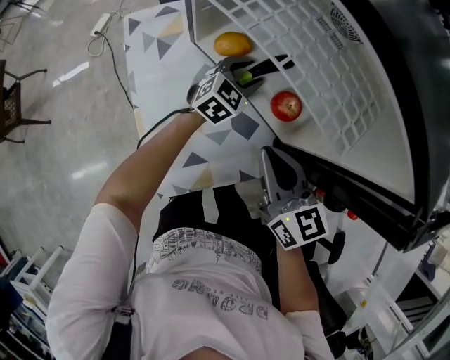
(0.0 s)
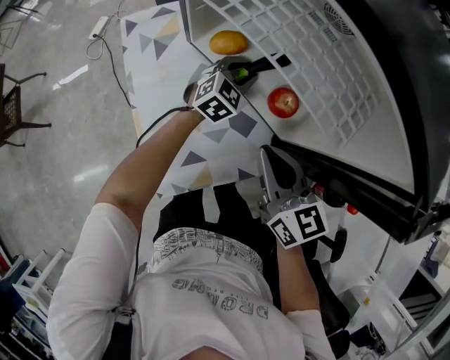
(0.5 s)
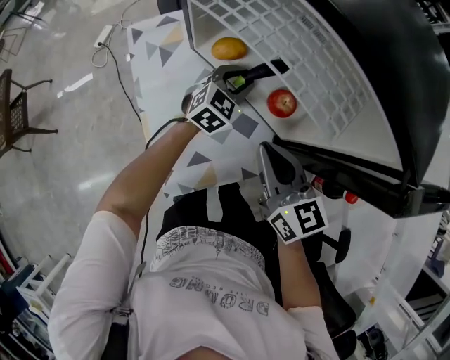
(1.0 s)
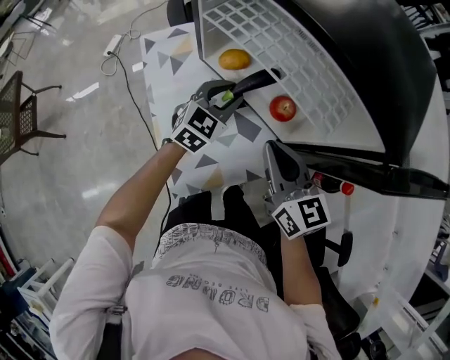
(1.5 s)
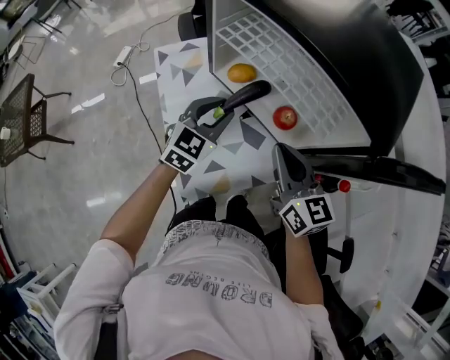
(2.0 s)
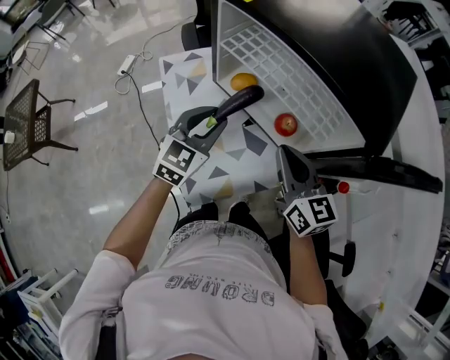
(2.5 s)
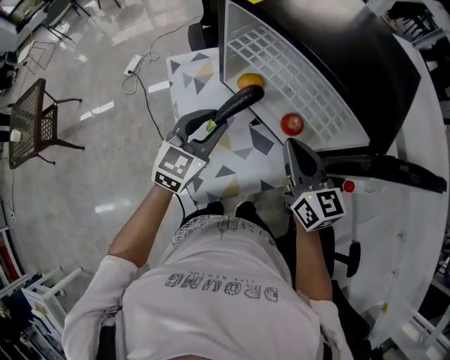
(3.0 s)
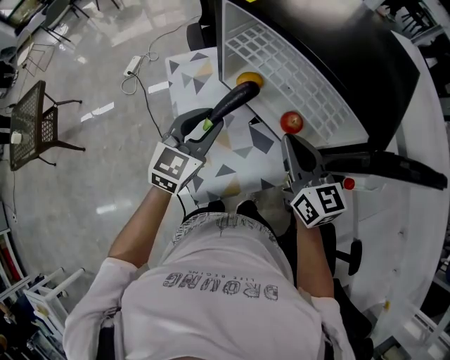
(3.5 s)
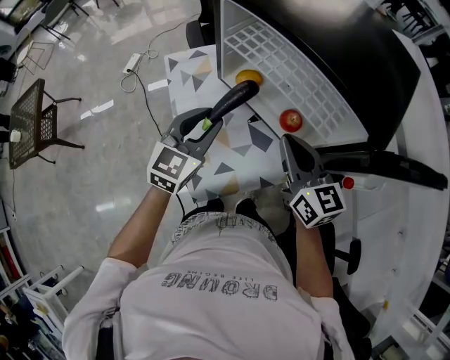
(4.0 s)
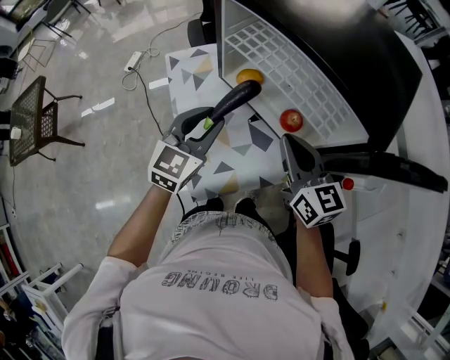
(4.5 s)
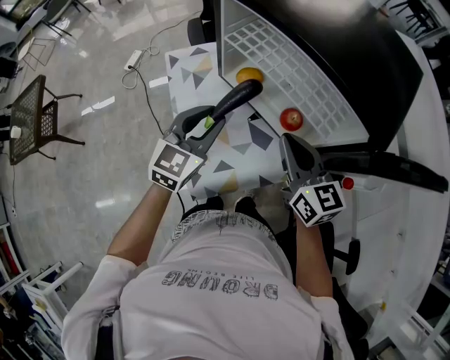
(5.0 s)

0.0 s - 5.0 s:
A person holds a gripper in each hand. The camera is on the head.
0.0 s - 2.5 s: The right gripper travels upward by approximately 10 cm. Meanwhile the left gripper moves upward, backward and to the left, roughly 25 cm.
2.5 s - 5.0 s: The grippers move only a little.

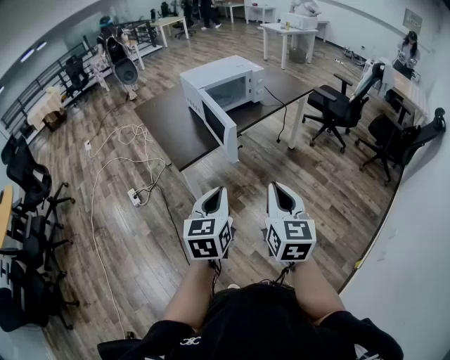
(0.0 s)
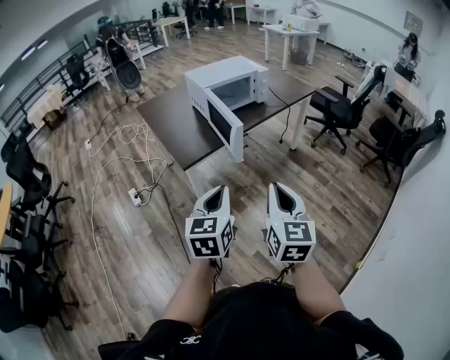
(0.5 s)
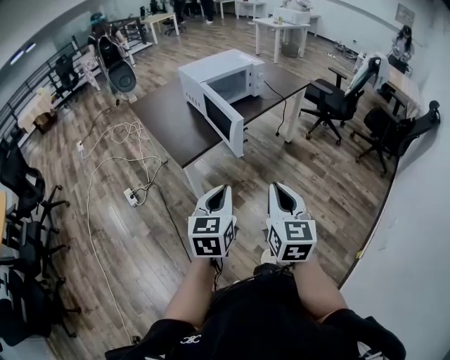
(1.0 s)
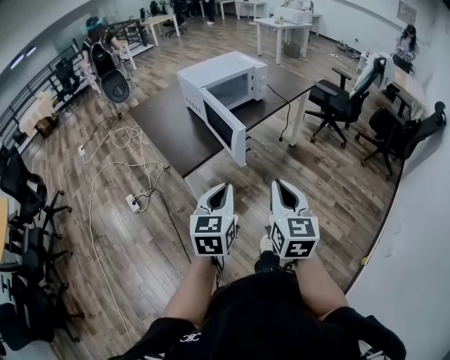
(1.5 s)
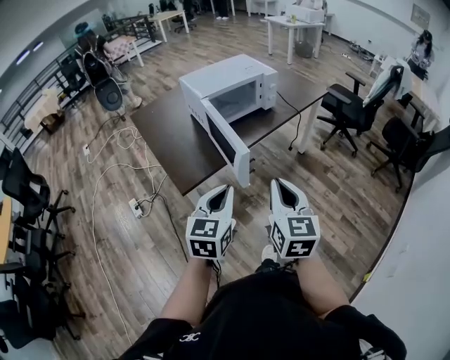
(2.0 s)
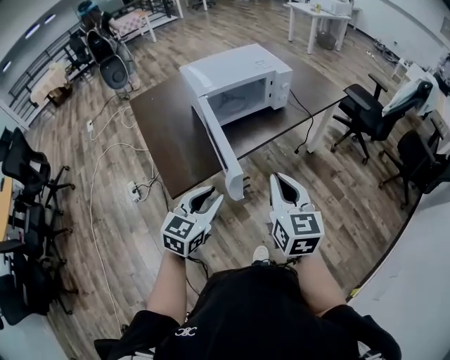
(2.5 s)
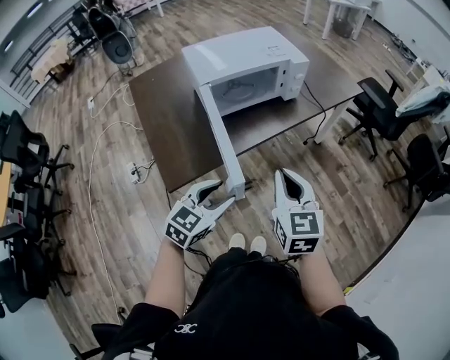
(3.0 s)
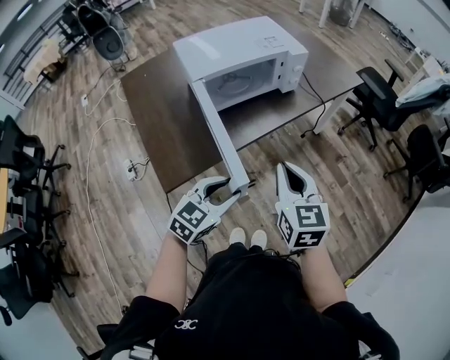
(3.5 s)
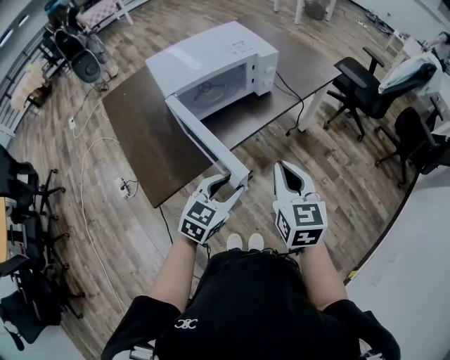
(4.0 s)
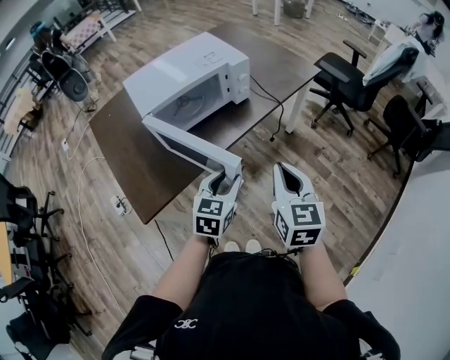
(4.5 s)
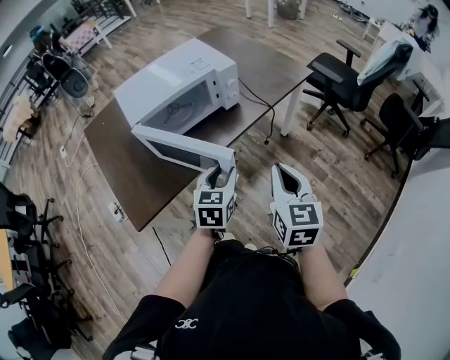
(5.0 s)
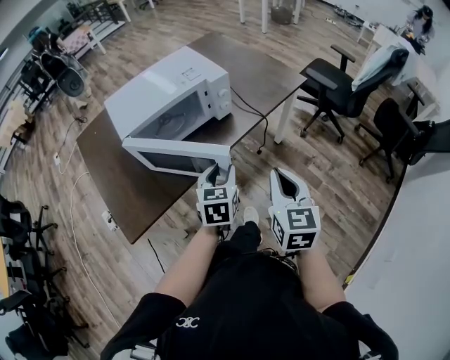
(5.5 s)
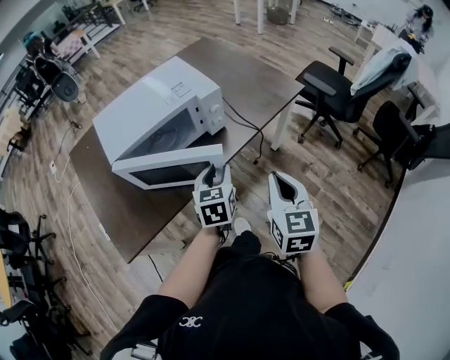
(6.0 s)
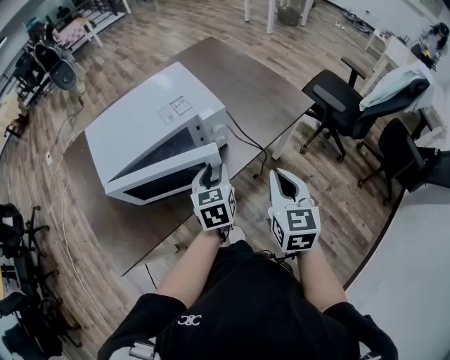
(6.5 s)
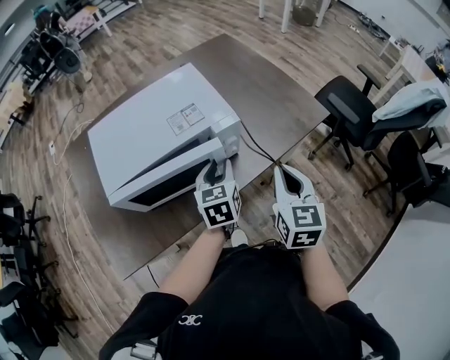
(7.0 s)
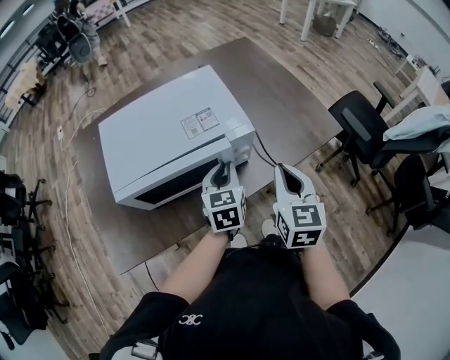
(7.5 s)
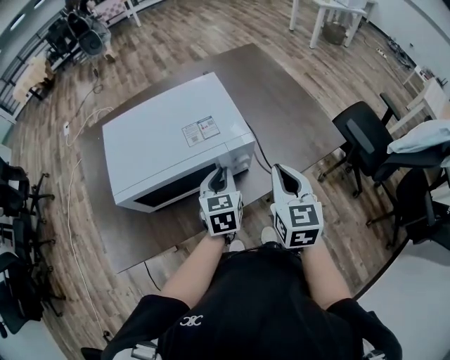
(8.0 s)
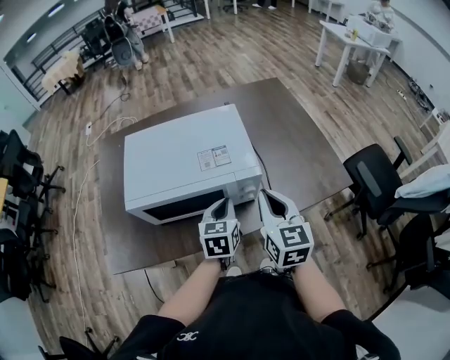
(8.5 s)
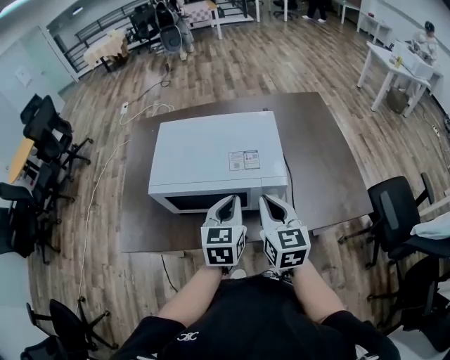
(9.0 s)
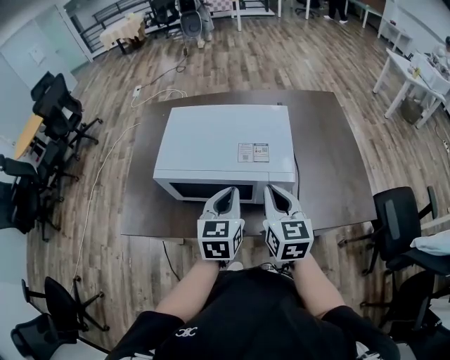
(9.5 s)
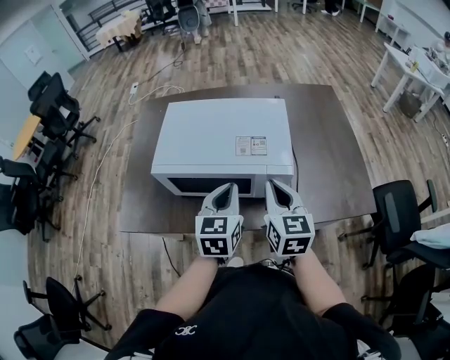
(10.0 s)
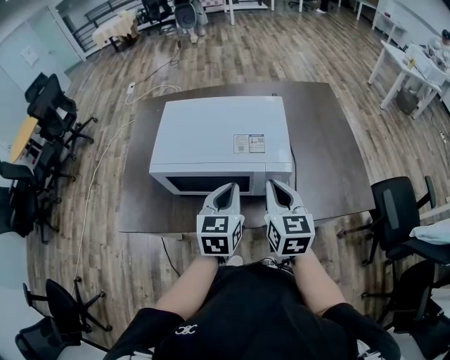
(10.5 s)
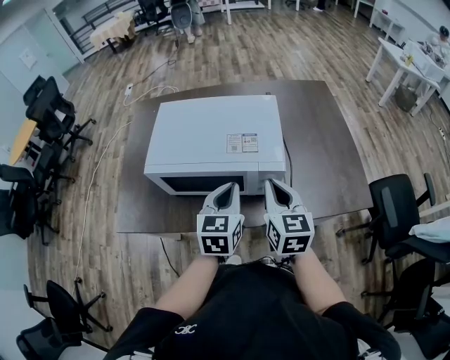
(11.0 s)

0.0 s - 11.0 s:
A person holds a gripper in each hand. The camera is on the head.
0.0 s - 2.0 s: The two grippers go roughly 20 cm forward.
2.0 s - 3.5 s: The right gripper moves forward, about 25 cm, while the left gripper moves forward and downward, some 20 cm, rotates roughly 30 degrees, and opens.
3.5 s - 5.5 s: The left gripper heads forward and to the right, covering approximately 25 cm, and swivels roughly 30 degrees. Meanwhile the right gripper goes roughly 20 cm to the right and forward.
5.5 s - 7.5 s: Both grippers move forward, roughly 30 cm. The left gripper closes its fingers.
7.5 s - 9.0 s: The left gripper moves upward, about 5 cm. Meanwhile the right gripper heads to the left and forward, covering approximately 10 cm, and swivels roughly 30 degrees.
9.0 s - 11.0 s: The grippers make only small movements.

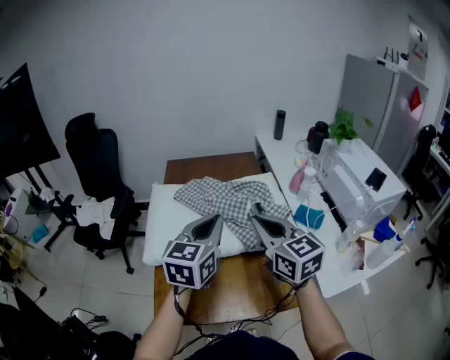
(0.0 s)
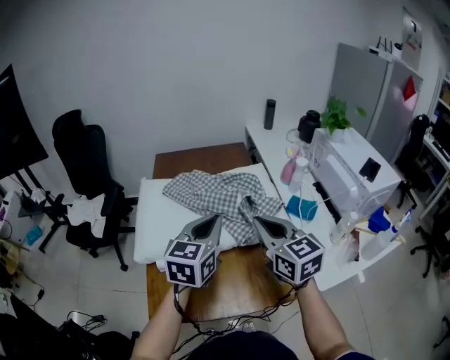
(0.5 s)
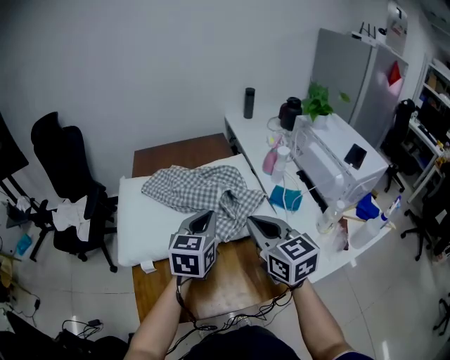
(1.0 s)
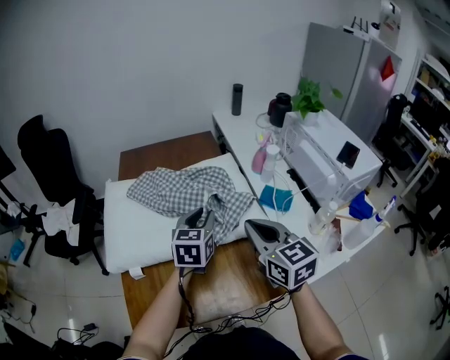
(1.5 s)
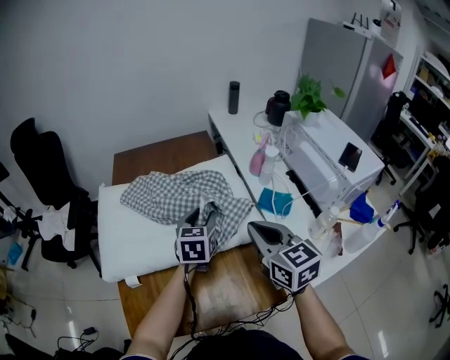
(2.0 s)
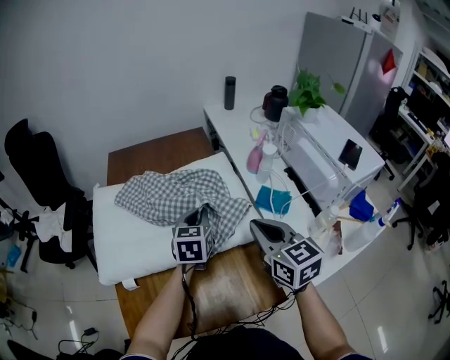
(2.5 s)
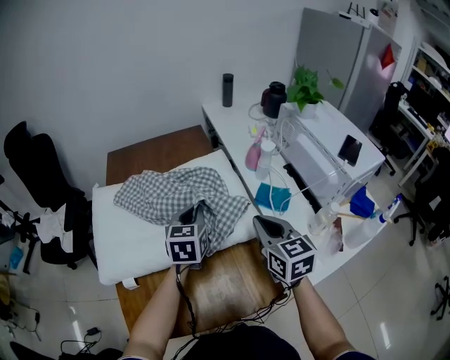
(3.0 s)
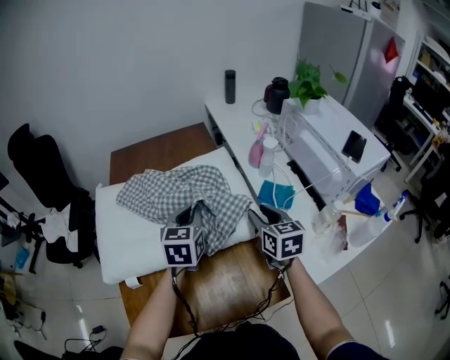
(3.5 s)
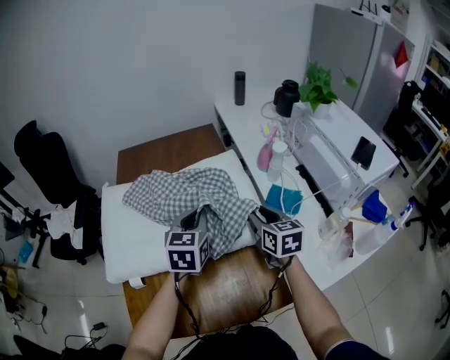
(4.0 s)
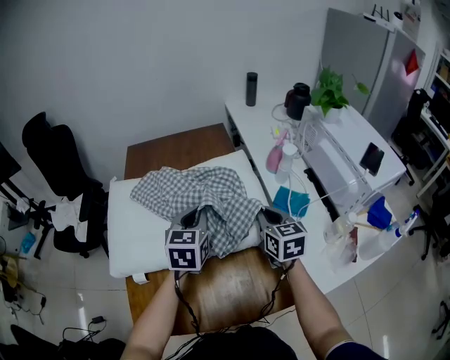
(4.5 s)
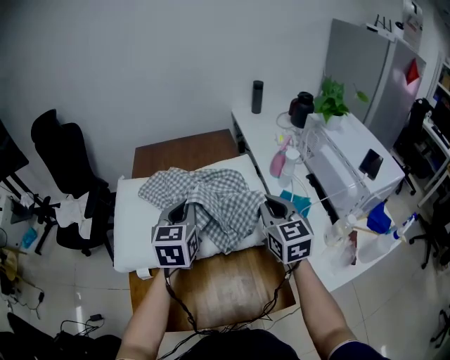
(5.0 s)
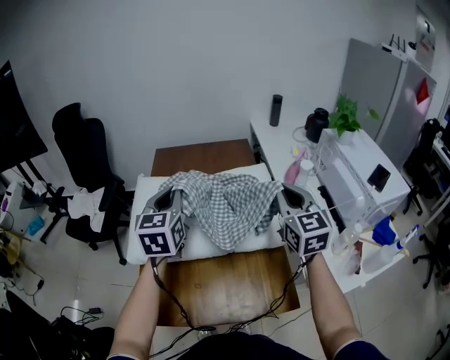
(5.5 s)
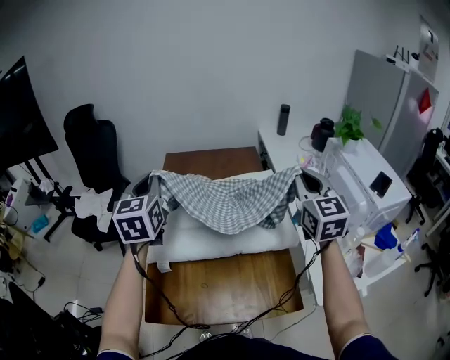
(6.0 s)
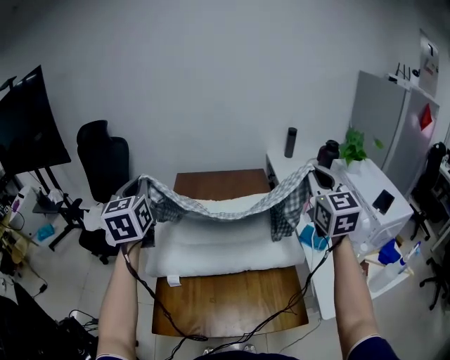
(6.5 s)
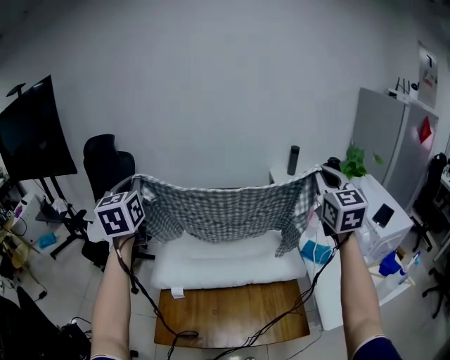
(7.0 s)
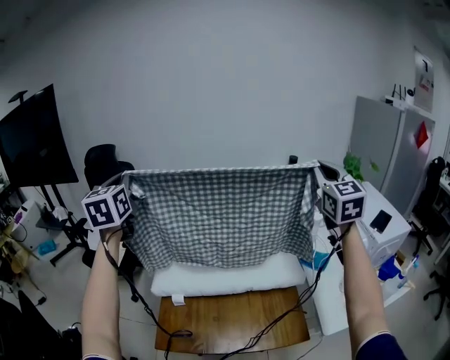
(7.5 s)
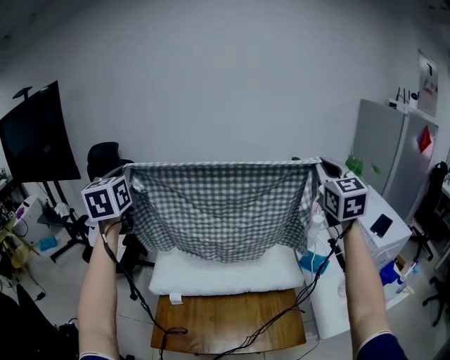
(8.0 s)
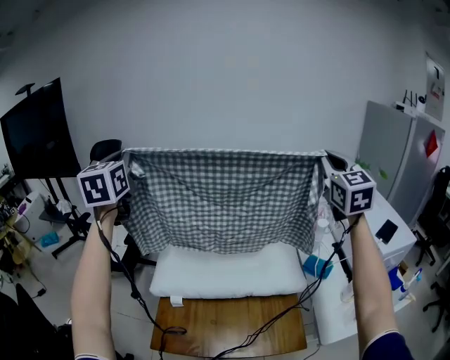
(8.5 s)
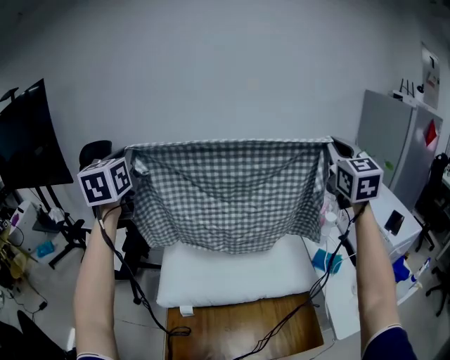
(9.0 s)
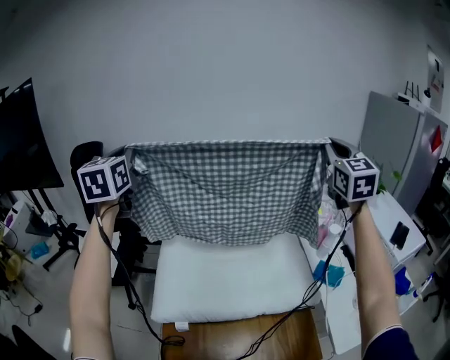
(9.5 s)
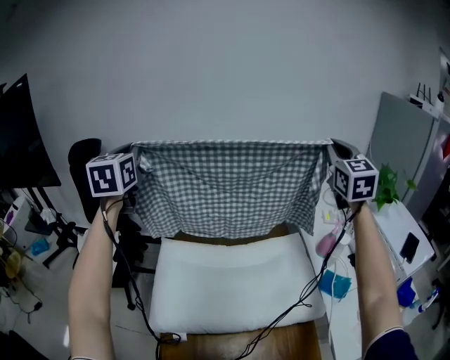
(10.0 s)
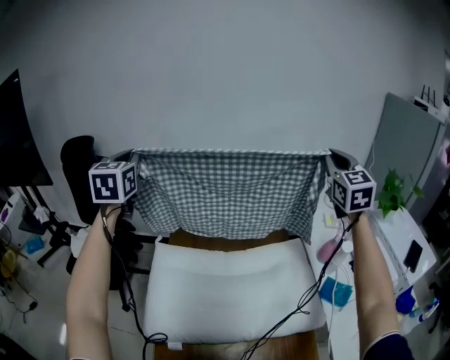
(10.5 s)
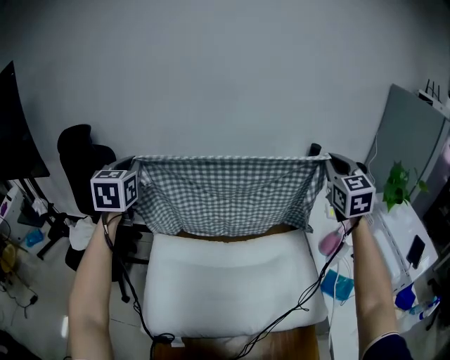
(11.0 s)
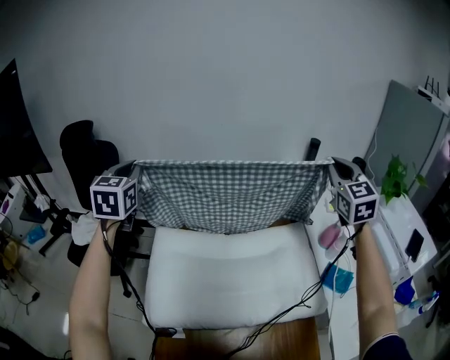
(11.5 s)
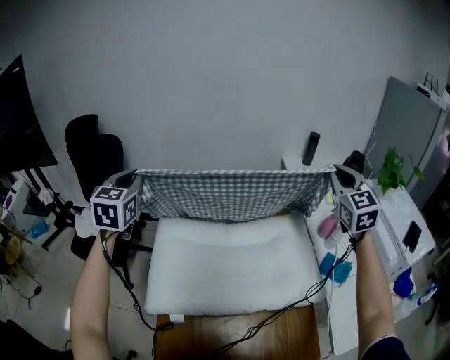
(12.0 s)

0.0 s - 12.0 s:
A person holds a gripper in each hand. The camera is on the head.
0.0 s - 2.0 s: The right gripper goes some 15 cm to the right and downward, while the left gripper is displaced downward, forward and to the right by about 25 cm, and opens.
2.0 s - 4.0 s: The right gripper travels downward and forward by about 15 cm, and opens up; the left gripper closes.
4.0 s - 6.0 s: The right gripper heads upward, covering some 25 cm, rotates about 40 degrees, and closes its fingers, while the left gripper shifts approximately 30 cm to the left and upward, and swivels some 30 degrees.
6.0 s - 8.0 s: The right gripper heads upward, covering roughly 15 cm; the left gripper heads upward and to the left, covering roughly 20 cm.
8.0 s - 10.0 s: The grippers both shift forward by some 25 cm.
10.0 s - 12.0 s: Both grippers move downward, approximately 15 cm.
